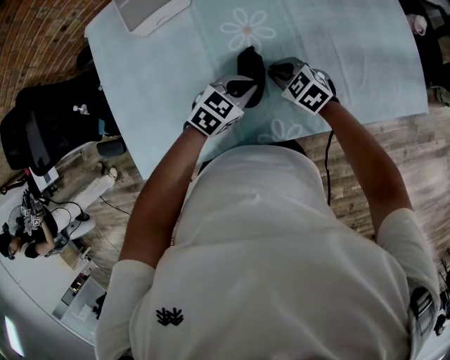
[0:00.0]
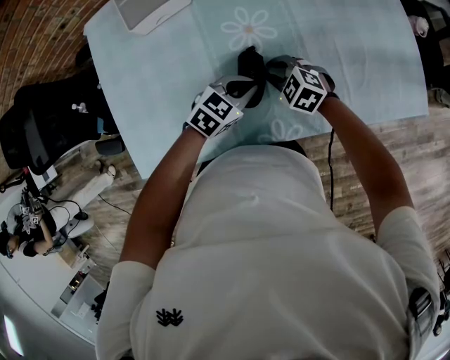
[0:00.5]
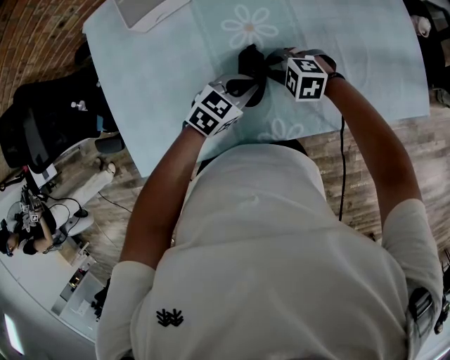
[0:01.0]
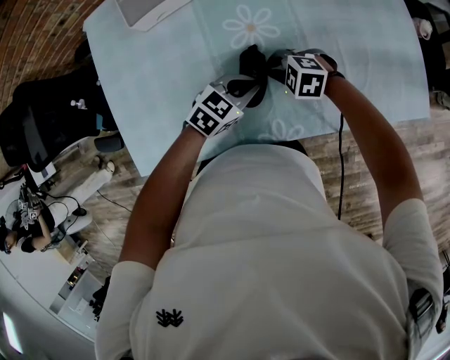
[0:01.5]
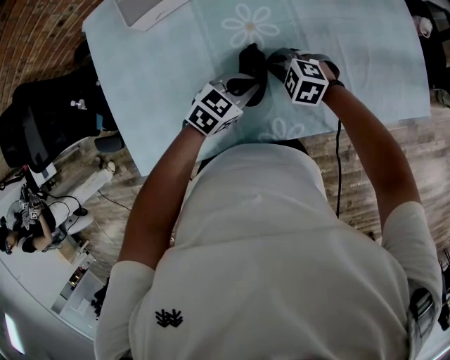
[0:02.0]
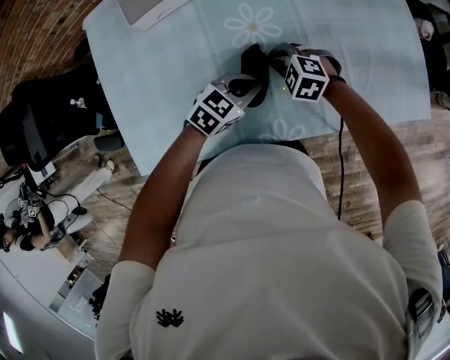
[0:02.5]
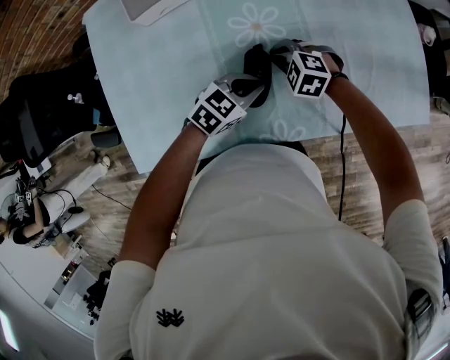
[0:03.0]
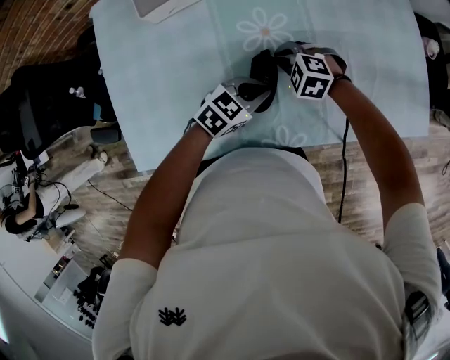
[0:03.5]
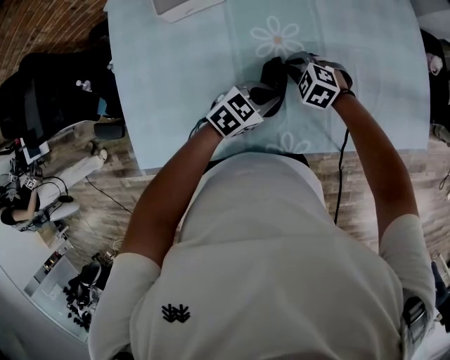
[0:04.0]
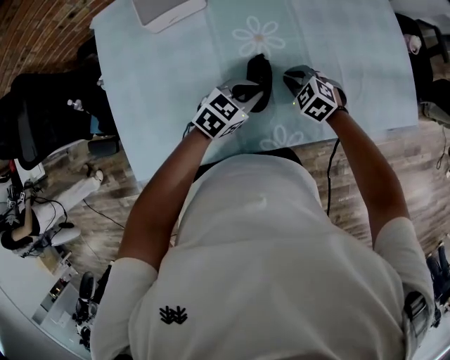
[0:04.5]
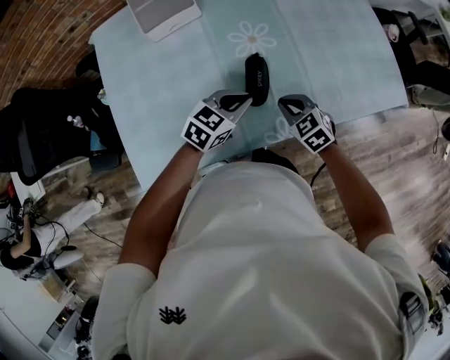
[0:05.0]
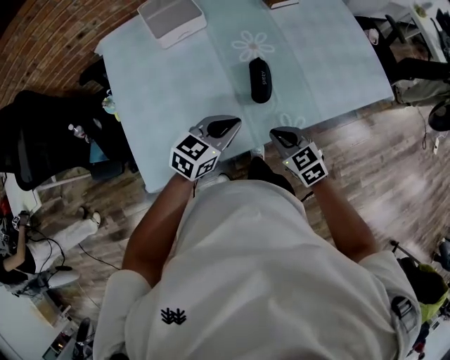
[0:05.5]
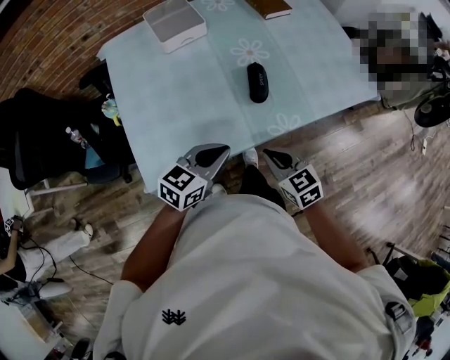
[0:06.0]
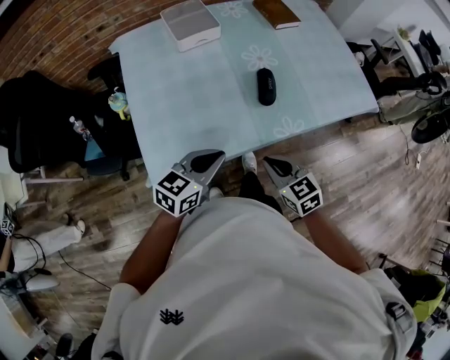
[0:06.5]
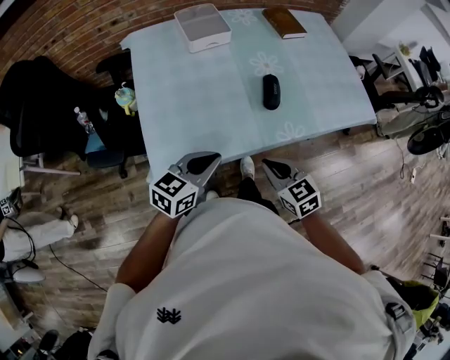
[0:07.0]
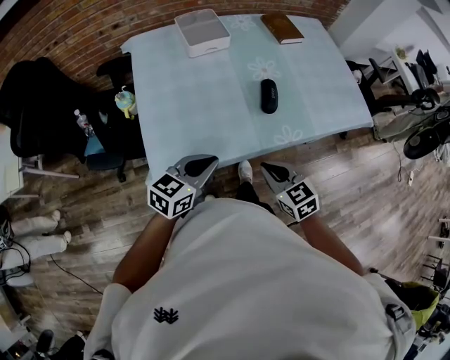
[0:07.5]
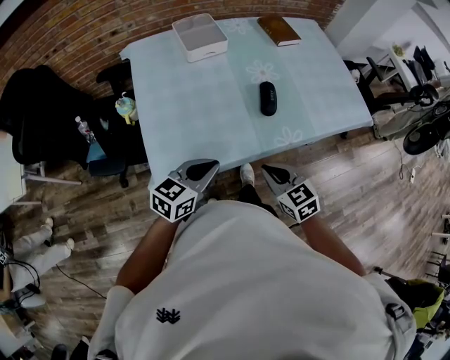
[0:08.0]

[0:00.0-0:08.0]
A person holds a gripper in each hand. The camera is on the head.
0:00.0 to 0:02.0: The right gripper changes its angle by approximately 20 degrees.
0:02.0 to 0:04.0: The grippers make only small movements.
0:04.0 to 0:06.0: The right gripper moves roughly 40 cm, and twists some 40 degrees clockwise, seen from behind. Meanwhile the left gripper ends up some 35 cm from where it was, and changes its angle by roughly 20 degrees.
0:06.0 to 0:08.0: The right gripper shifts some 5 cm backward; the left gripper goes about 10 cm to the left and backward.

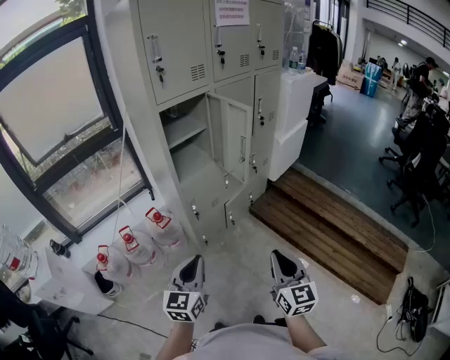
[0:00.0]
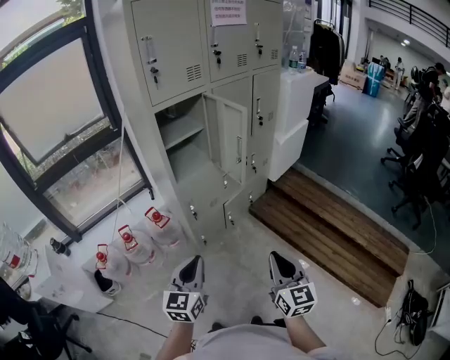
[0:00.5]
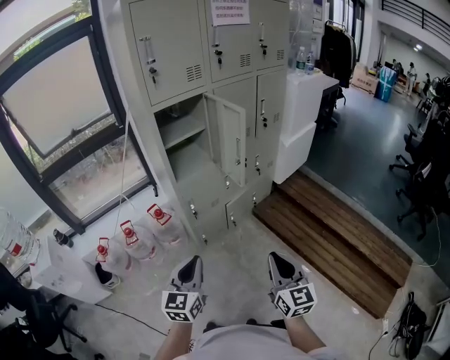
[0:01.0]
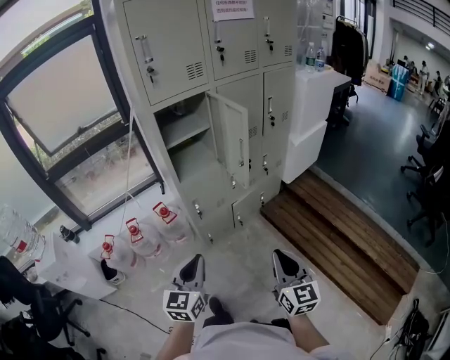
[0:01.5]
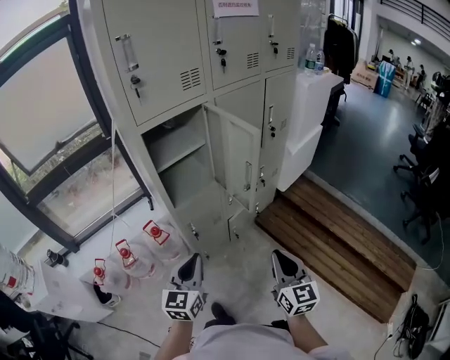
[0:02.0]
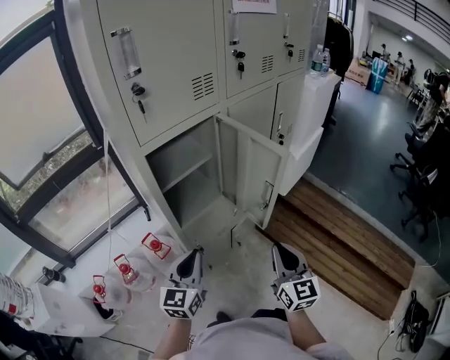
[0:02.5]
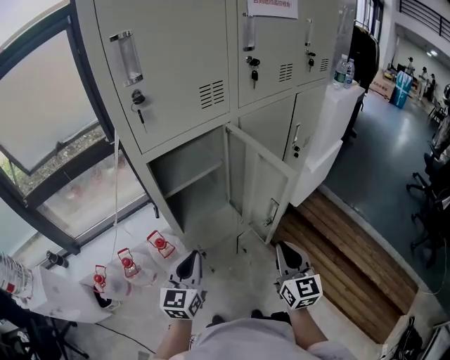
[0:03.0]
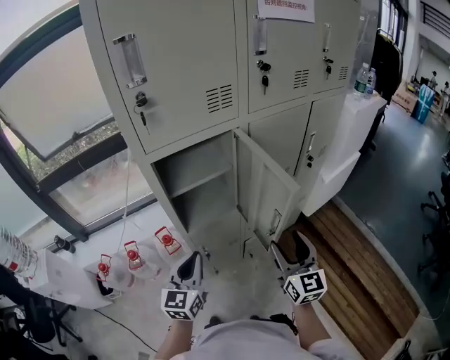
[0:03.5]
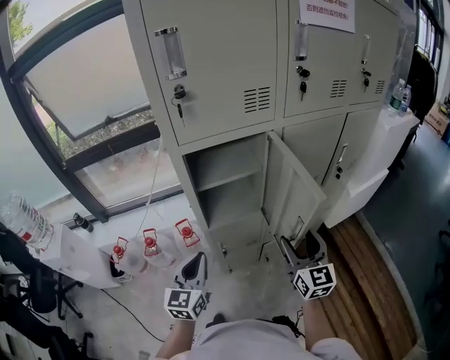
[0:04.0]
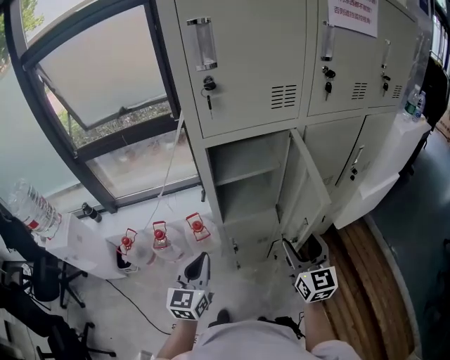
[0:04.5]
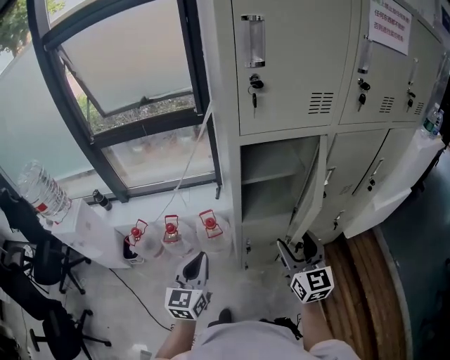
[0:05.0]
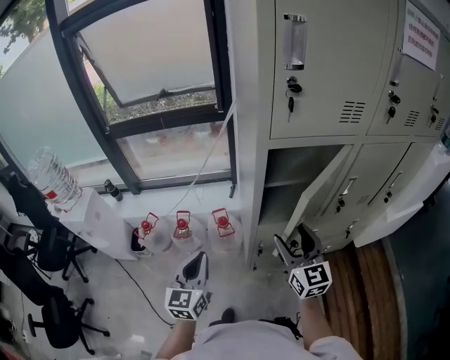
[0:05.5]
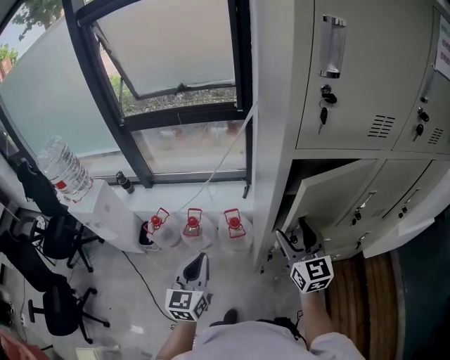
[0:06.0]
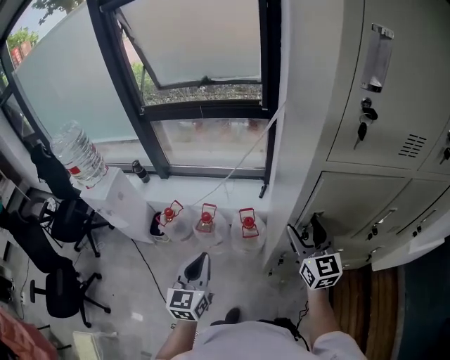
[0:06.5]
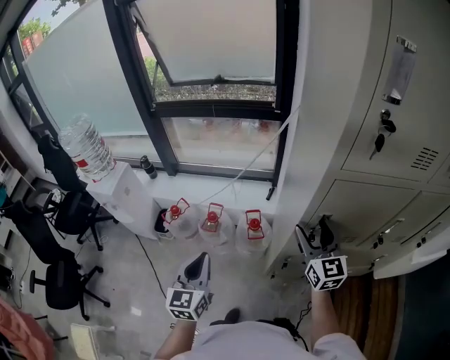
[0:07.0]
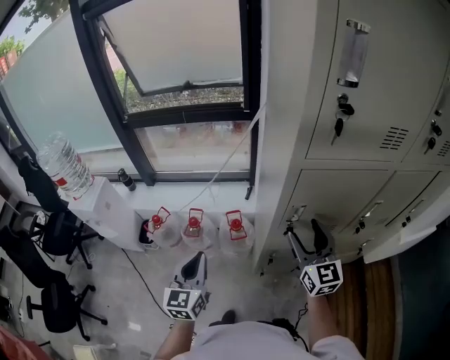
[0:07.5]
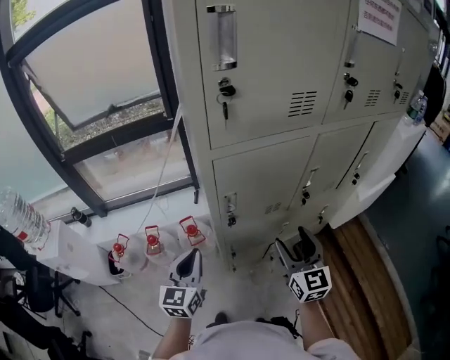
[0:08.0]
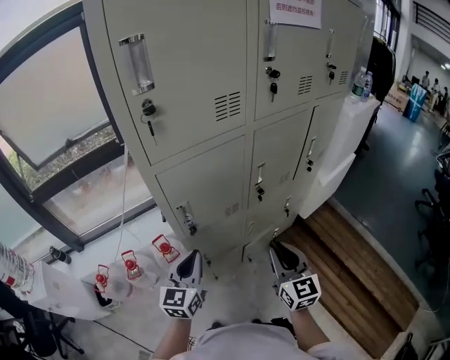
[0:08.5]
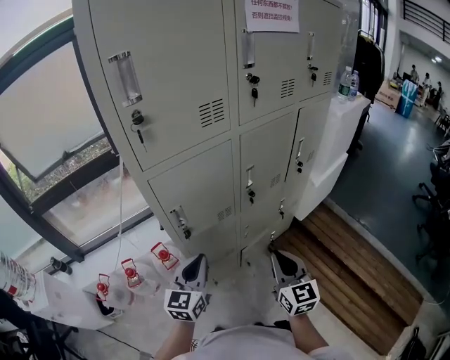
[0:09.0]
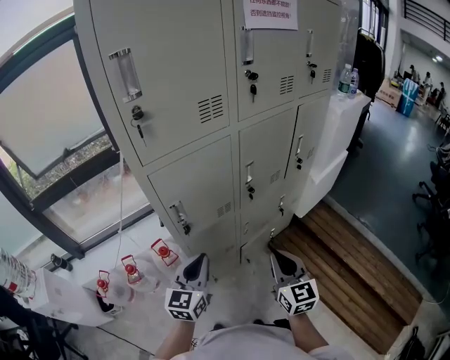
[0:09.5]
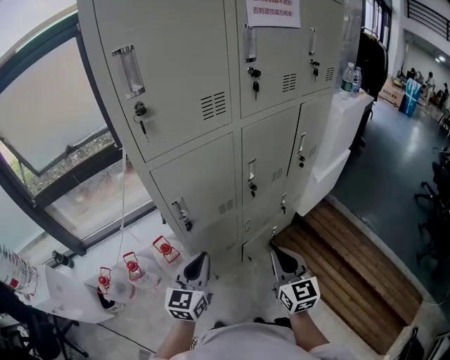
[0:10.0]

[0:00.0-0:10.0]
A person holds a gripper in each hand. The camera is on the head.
0:00.0 to 0:02.0: The two grippers go roughly 20 cm forward.
0:02.0 to 0:04.0: The right gripper shifts some 25 cm forward, and opens. The left gripper shifts about 15 cm forward and to the left, and swivels about 20 degrees.
0:04.0 to 0:06.0: The left gripper moves to the left, some 20 cm, and changes its angle by about 20 degrees, while the right gripper travels to the left and forward by approximately 25 cm, and swivels some 20 degrees.
0:06.0 to 0:08.0: The right gripper moves some 15 cm, and changes its angle by about 20 degrees. Meanwhile the left gripper ends up roughly 15 cm from where it was.
0:08.0 to 0:10.0: The left gripper is displaced to the right by approximately 15 cm, and rotates roughly 20 degrees. Meanwhile the right gripper goes some 15 cm to the right and backward, and closes up.

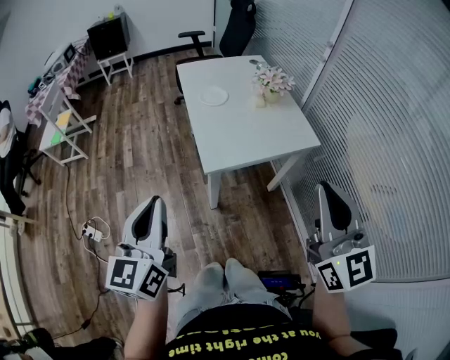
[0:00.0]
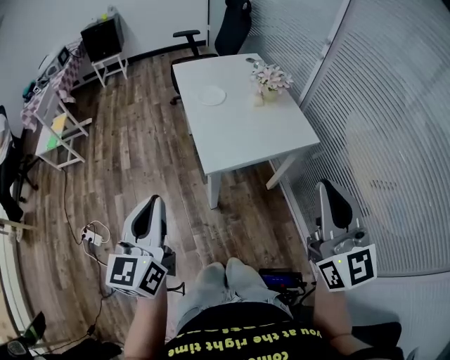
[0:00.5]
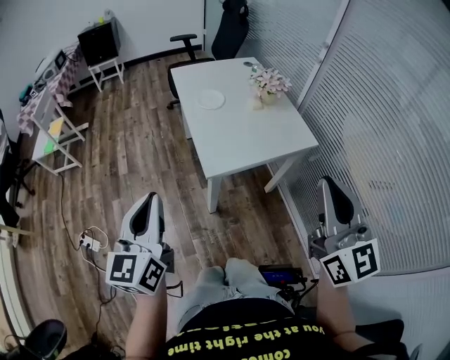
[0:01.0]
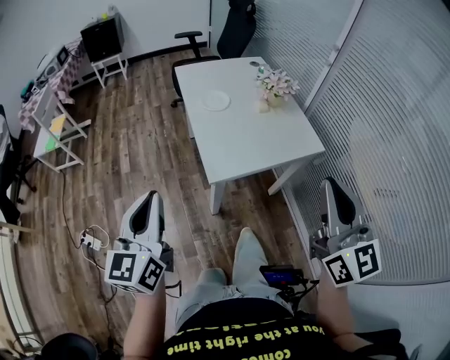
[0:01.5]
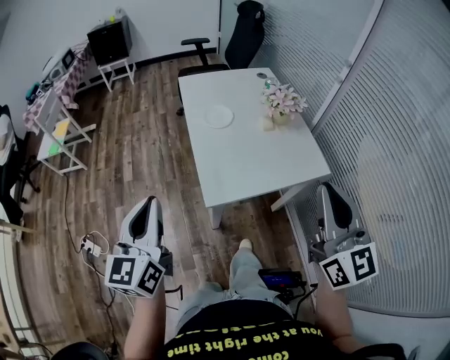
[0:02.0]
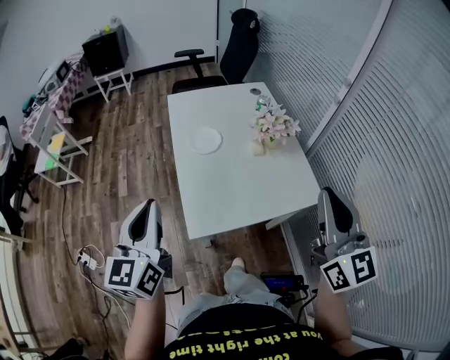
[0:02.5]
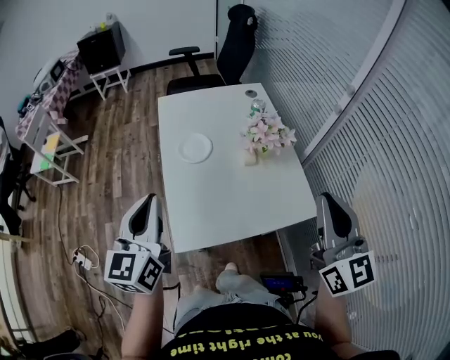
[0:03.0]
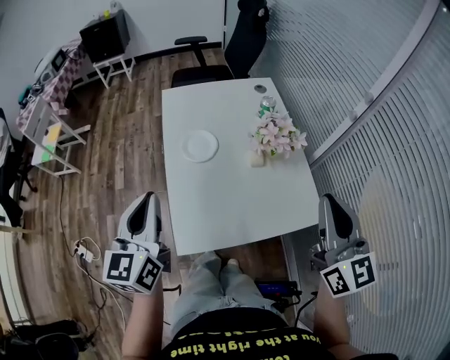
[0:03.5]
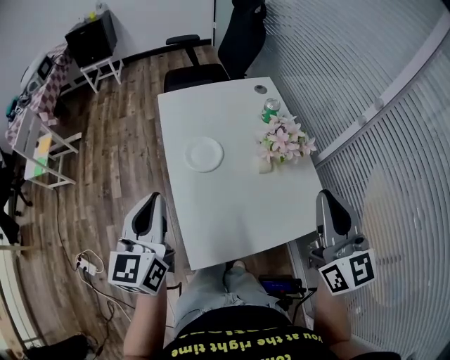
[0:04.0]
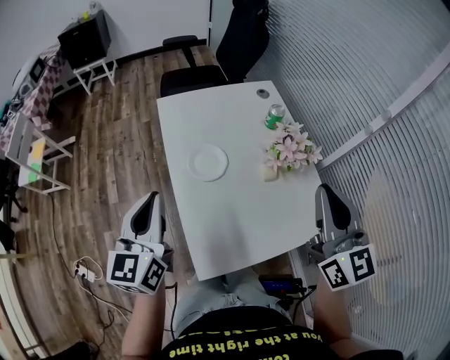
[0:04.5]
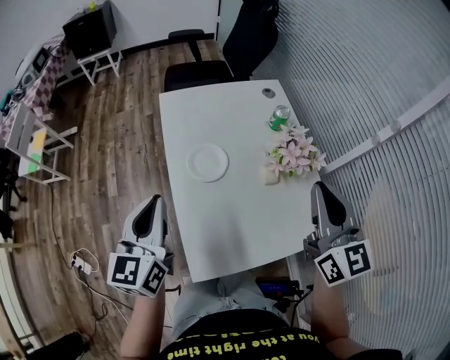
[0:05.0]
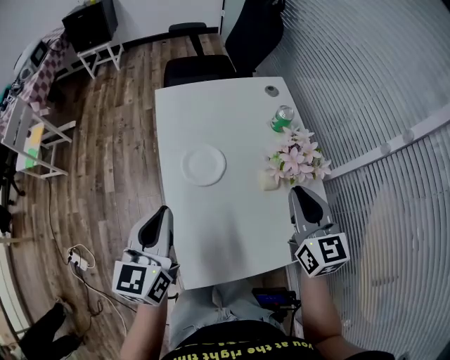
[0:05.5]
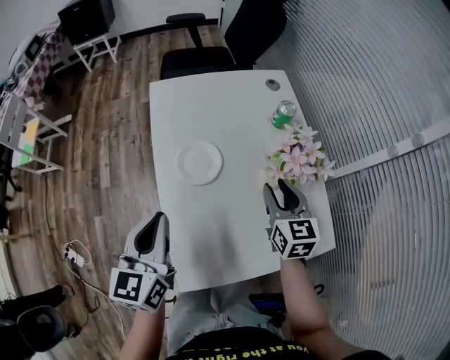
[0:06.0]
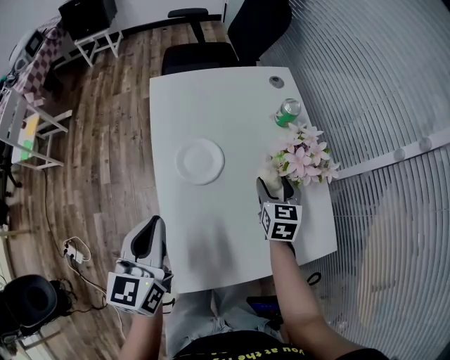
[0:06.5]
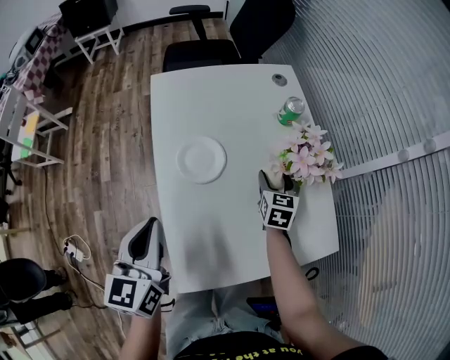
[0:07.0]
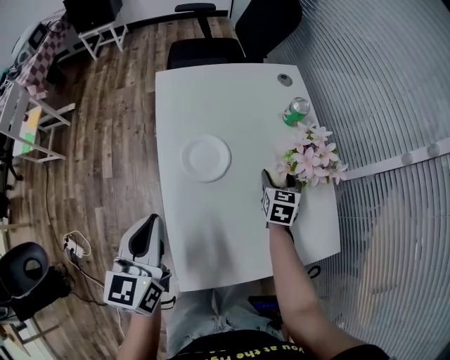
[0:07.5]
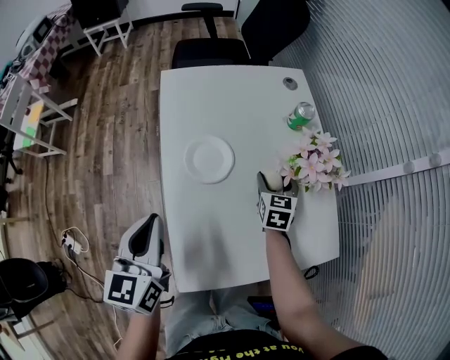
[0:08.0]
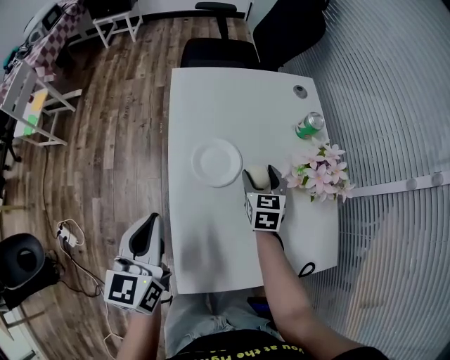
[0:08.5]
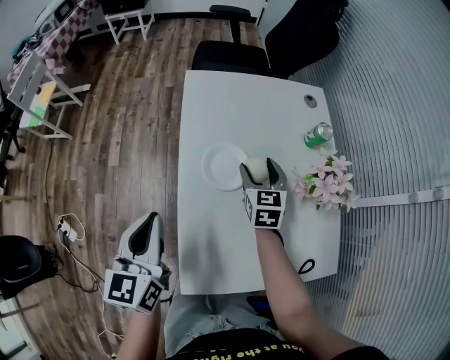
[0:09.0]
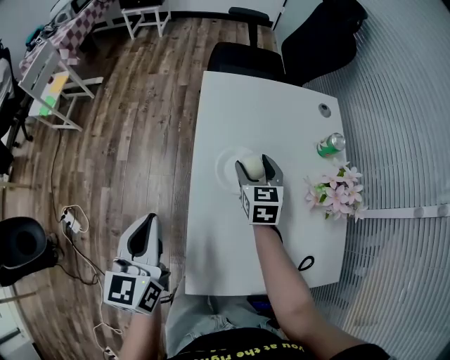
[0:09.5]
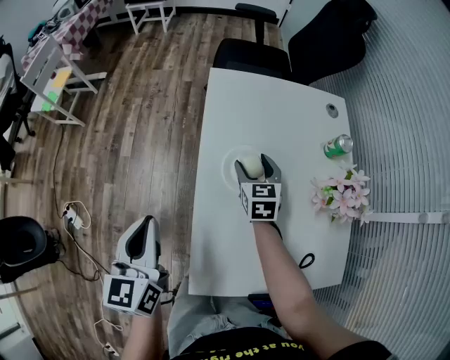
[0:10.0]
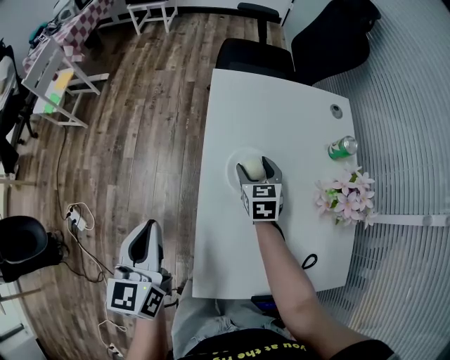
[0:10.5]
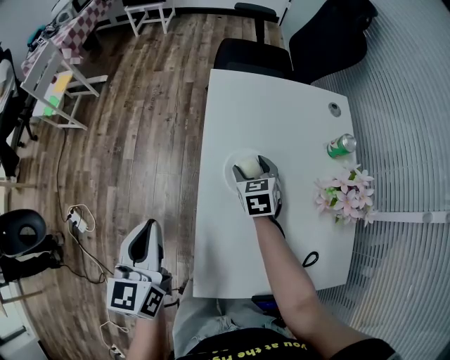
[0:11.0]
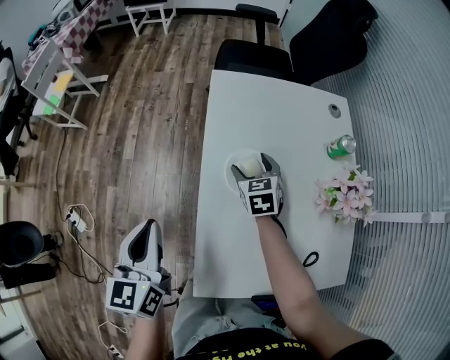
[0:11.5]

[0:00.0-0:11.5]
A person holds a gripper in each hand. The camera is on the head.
0:00.0 to 0:02.0: The grippers both shift forward by approximately 15 cm.
0:02.0 to 0:04.0: Both grippers travel together forward, some 25 cm.
0:04.0 to 0:06.0: The left gripper moves downward and forward, about 10 cm. Meanwhile the right gripper goes some 30 cm downward and forward, turns by some 30 degrees, and opens up.
0:06.0 to 0:07.5: The right gripper is displaced downward and forward by roughly 15 cm, and opens its fingers.
0:07.5 to 0:09.5: The right gripper is displaced to the left by approximately 20 cm, and turns by some 20 degrees. The left gripper moves to the left, some 10 cm.
0:09.5 to 0:11.5: The right gripper shifts by about 5 cm.
